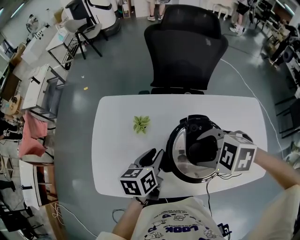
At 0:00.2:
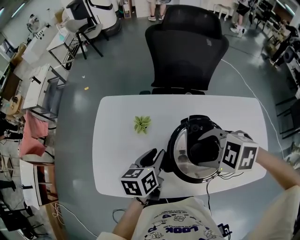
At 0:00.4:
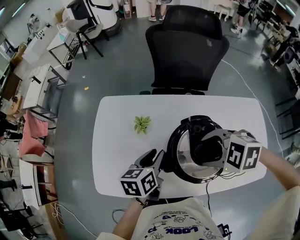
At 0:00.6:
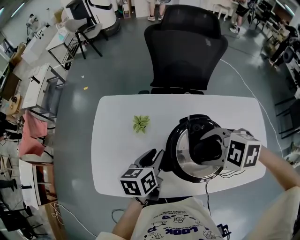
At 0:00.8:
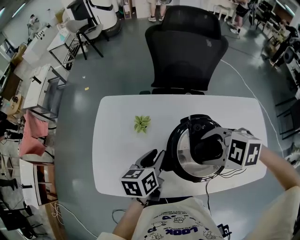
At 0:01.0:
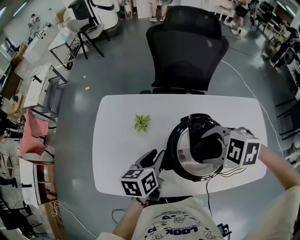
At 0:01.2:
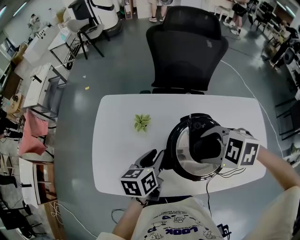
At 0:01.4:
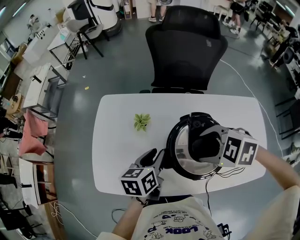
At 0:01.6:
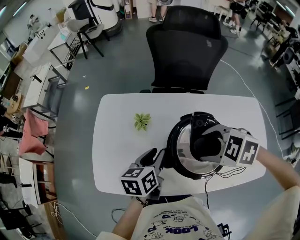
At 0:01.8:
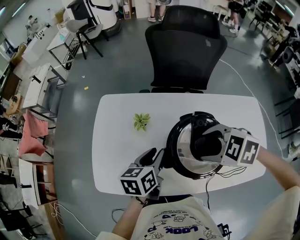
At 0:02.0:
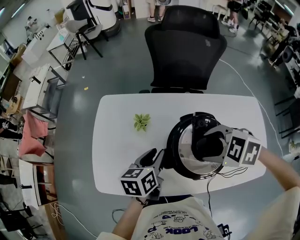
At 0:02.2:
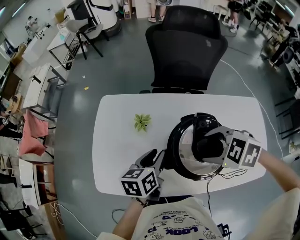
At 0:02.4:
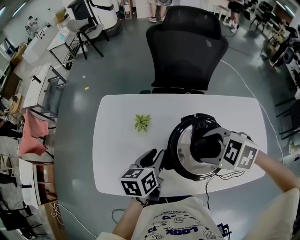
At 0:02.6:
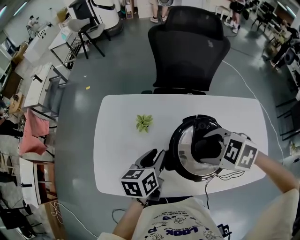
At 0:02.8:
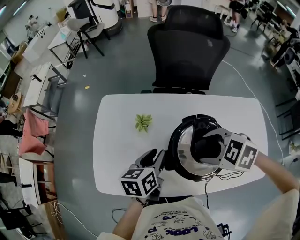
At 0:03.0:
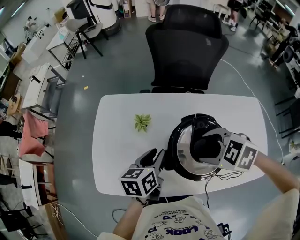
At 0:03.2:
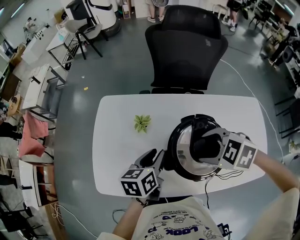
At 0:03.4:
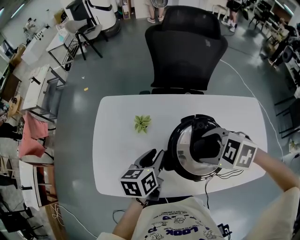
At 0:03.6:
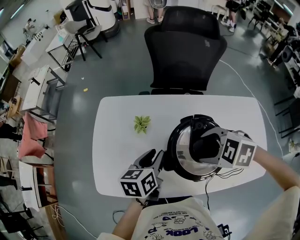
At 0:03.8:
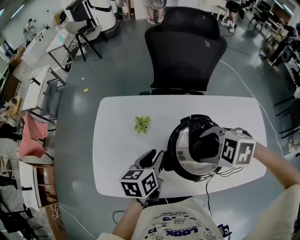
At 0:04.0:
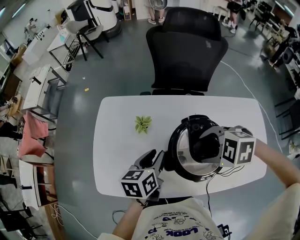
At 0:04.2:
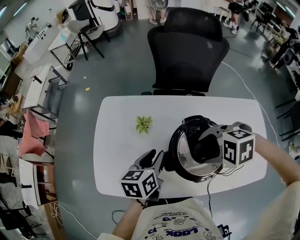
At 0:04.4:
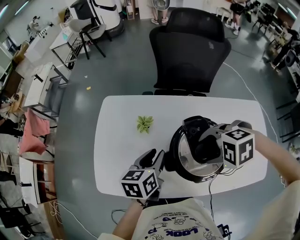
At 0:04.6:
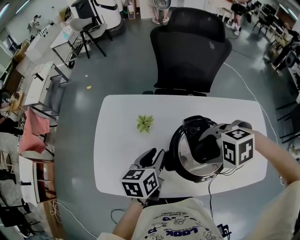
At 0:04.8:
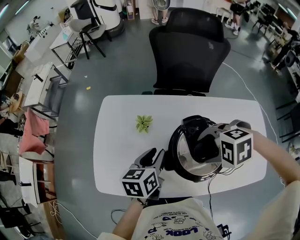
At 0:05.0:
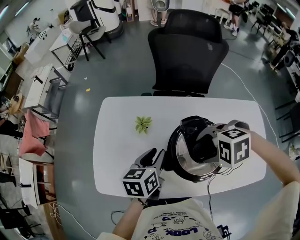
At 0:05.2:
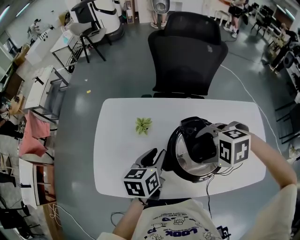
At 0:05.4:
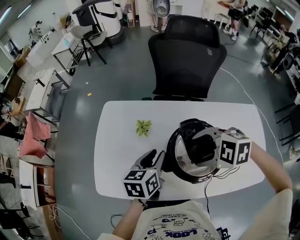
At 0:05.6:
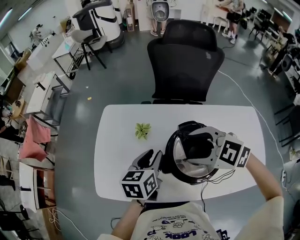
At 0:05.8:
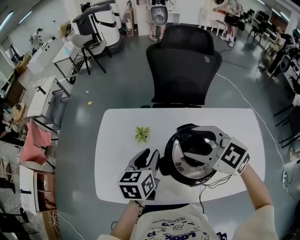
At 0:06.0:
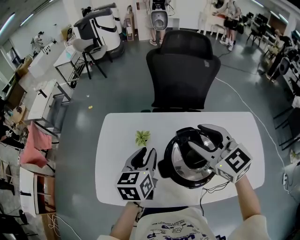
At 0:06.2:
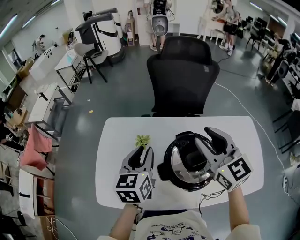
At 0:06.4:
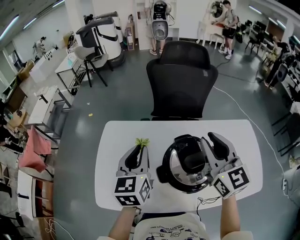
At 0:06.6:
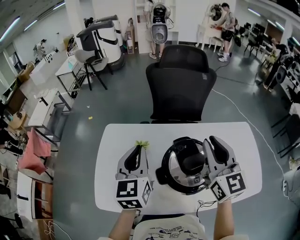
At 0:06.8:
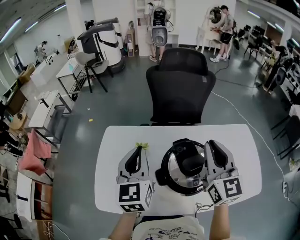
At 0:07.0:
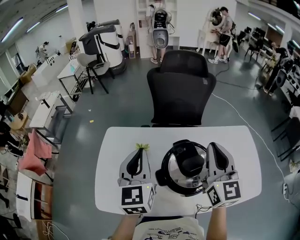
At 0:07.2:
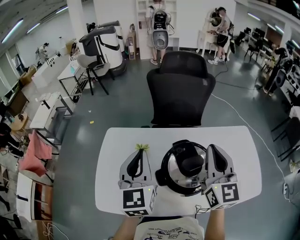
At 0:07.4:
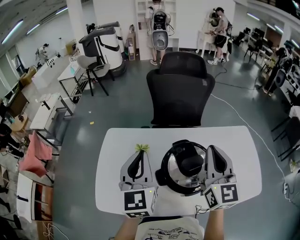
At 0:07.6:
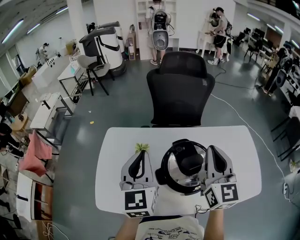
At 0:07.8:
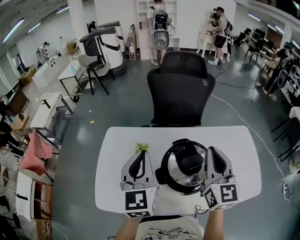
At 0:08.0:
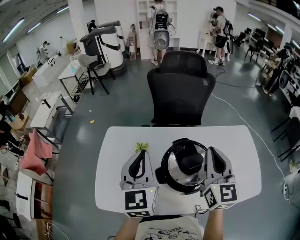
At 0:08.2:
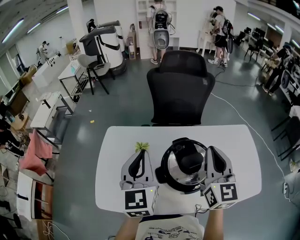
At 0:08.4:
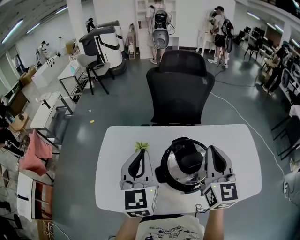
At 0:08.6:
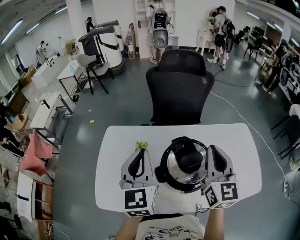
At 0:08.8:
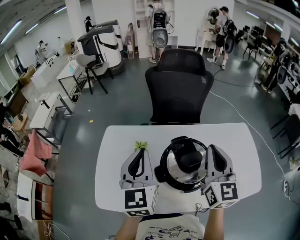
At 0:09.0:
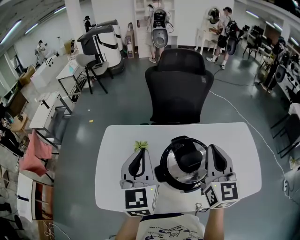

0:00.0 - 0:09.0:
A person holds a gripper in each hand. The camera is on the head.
0:00.0 - 0:01.6: The grippers move only a little.
0:01.6 - 0:03.0: Both grippers stay about where they are.
0:03.0 - 0:04.4: The right gripper swivels some 30 degrees.
0:04.4 - 0:06.0: The left gripper moves upward, some 10 cm, while the right gripper moves upward, approximately 15 cm, and angles its fingers upward, by about 50 degrees.
0:06.0 - 0:07.6: The right gripper goes roughly 10 cm to the right, backward and upward, turns by about 40 degrees, and closes its fingers. Meanwhile the left gripper goes roughly 15 cm upward, turns by about 30 degrees, and closes up.
0:07.6 - 0:09.0: Both grippers stay about where they are.

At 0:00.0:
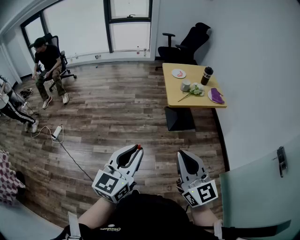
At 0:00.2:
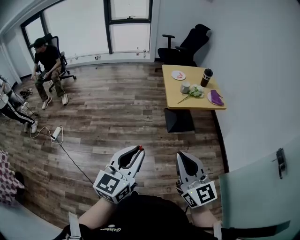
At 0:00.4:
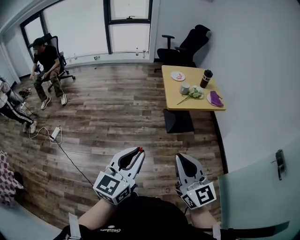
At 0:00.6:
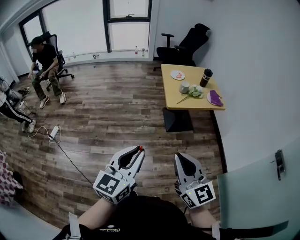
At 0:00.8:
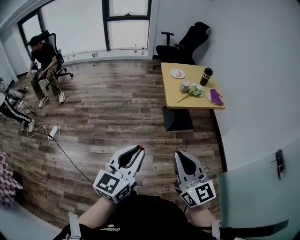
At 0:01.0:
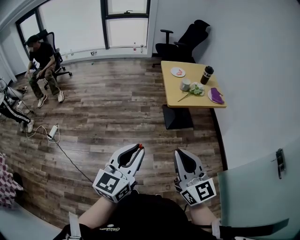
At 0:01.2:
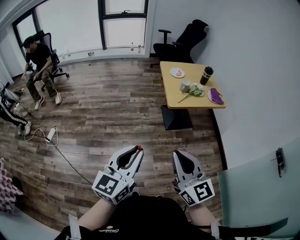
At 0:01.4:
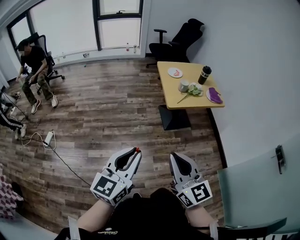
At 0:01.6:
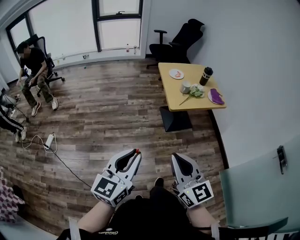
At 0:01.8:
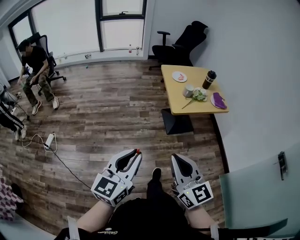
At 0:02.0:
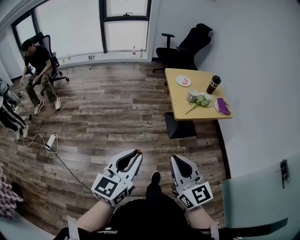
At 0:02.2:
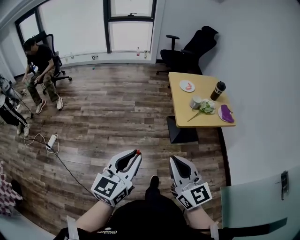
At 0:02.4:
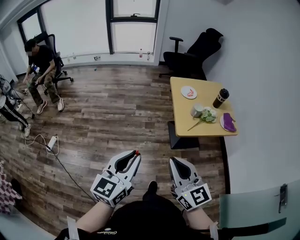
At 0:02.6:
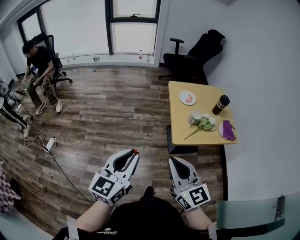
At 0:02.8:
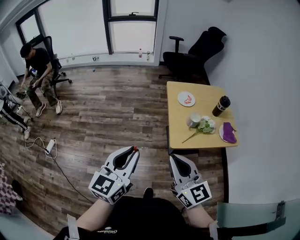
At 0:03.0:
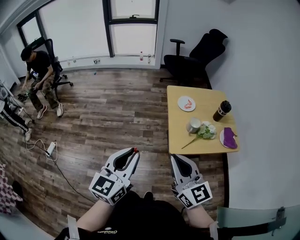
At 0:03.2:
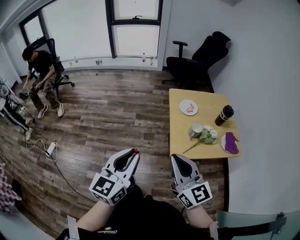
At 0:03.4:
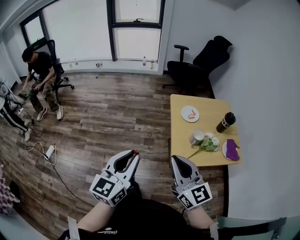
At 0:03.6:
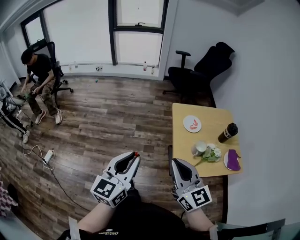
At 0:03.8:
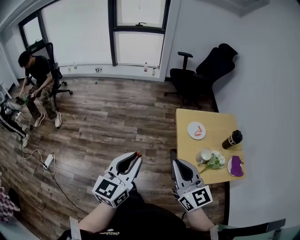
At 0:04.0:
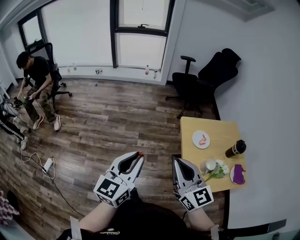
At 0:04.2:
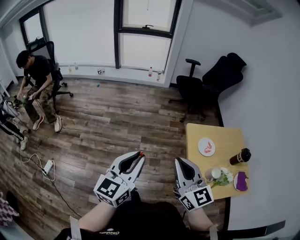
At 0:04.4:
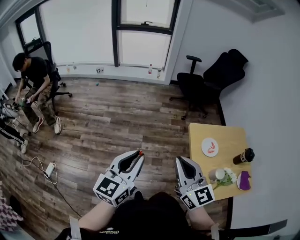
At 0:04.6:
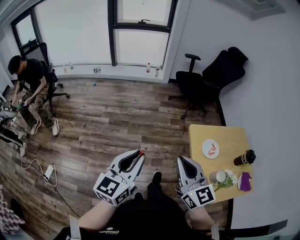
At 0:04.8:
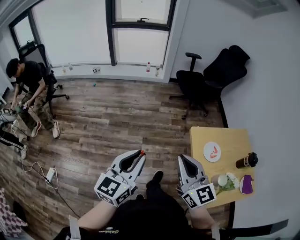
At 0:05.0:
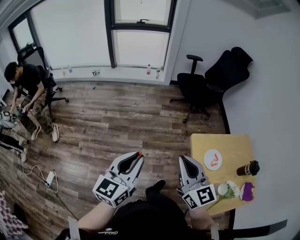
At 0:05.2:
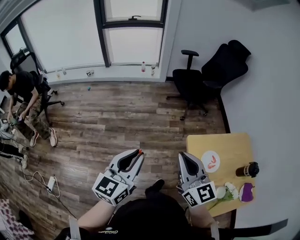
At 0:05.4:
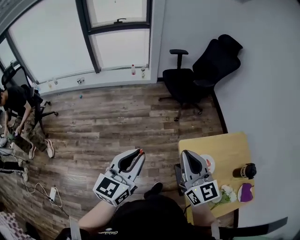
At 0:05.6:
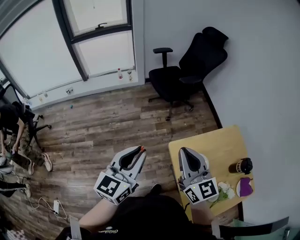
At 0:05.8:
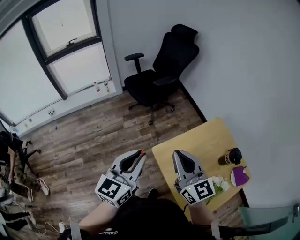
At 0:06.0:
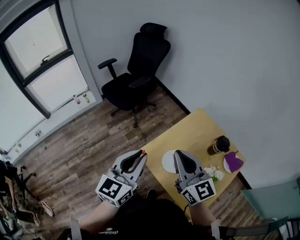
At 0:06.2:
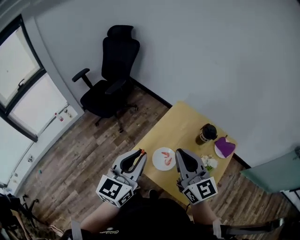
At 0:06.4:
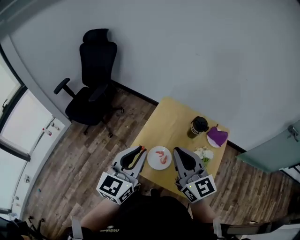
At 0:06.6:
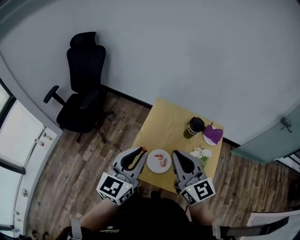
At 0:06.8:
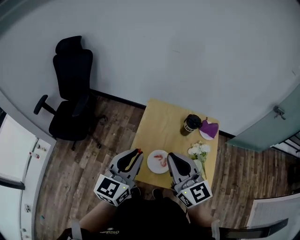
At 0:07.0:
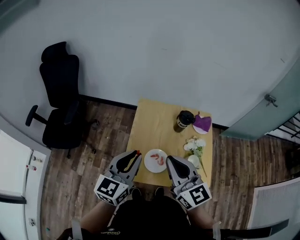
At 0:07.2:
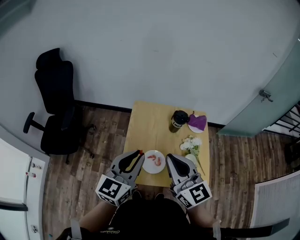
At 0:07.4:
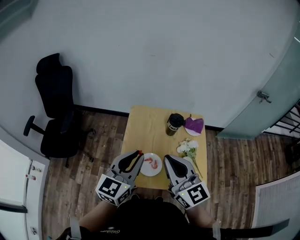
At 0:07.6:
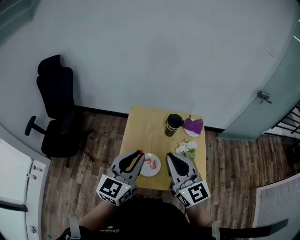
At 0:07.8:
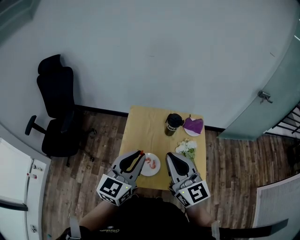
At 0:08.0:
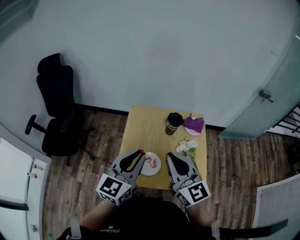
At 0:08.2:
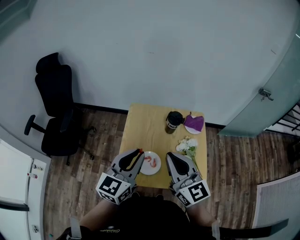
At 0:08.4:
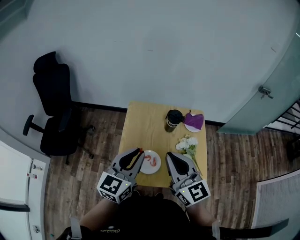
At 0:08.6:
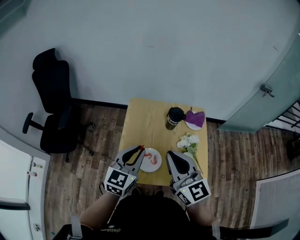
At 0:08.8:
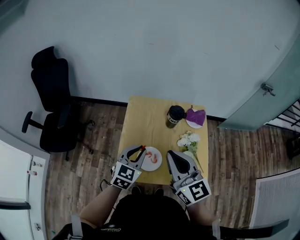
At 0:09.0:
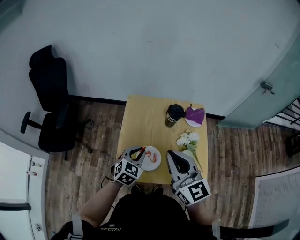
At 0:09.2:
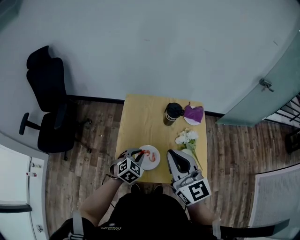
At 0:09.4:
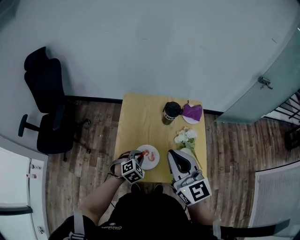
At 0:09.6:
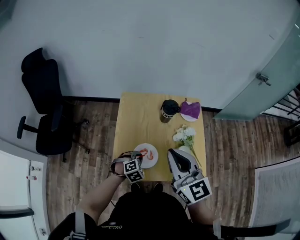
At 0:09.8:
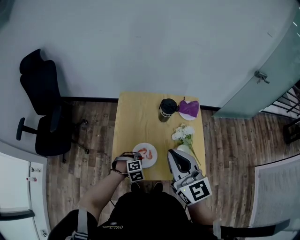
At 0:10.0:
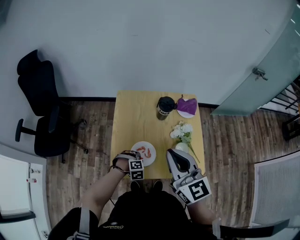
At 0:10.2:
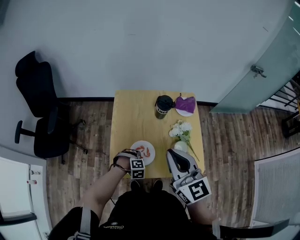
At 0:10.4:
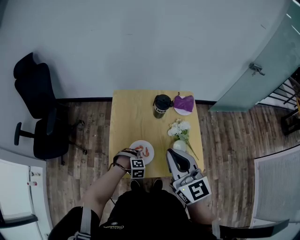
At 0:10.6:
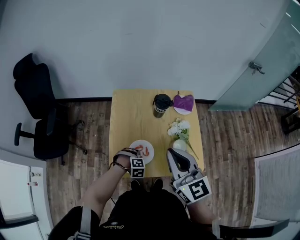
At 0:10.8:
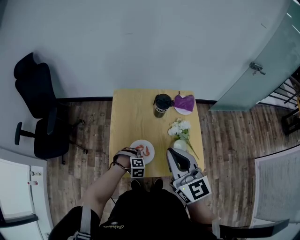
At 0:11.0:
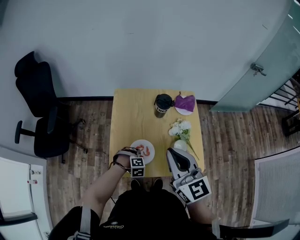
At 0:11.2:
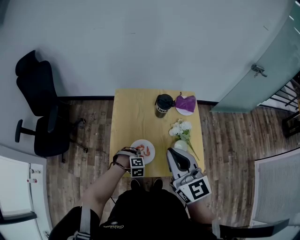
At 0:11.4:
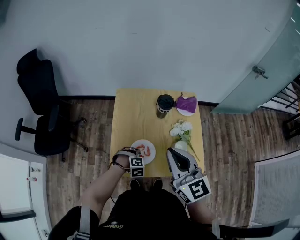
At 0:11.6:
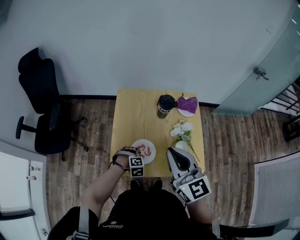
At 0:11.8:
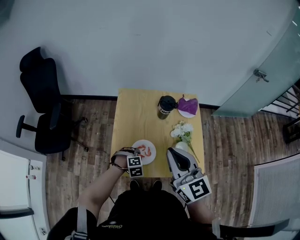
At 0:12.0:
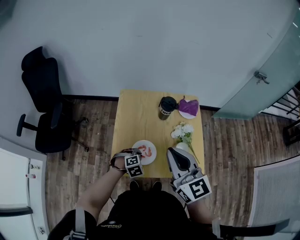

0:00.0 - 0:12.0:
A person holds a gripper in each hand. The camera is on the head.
0:00.0 - 0:01.6: Both grippers travel together to the left and forward, roughly 10 cm.
0:01.6 - 0:03.0: The two grippers go approximately 30 cm forward.
0:03.0 - 0:04.4: The two grippers go some 35 cm forward and to the left.
0:04.4 - 0:06.0: The left gripper moves some 40 cm, and turns by roughly 40 degrees. Meanwhile the right gripper moves roughly 35 cm, and swivels roughly 40 degrees.
0:06.0 - 0:07.6: The left gripper changes place by approximately 15 cm, and rotates about 50 degrees. Meanwhile the right gripper changes place by some 10 cm, and turns by roughly 40 degrees.
0:07.6 - 0:09.0: The left gripper heads downward, covering approximately 20 cm, and angles its fingers downward, by about 30 degrees.
0:09.0 - 0:10.4: The left gripper goes about 20 cm downward, and tilts its fingers about 40 degrees downward.
0:10.4 - 0:12.0: The left gripper is displaced upward by some 5 cm, and rotates some 20 degrees.

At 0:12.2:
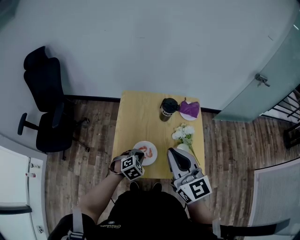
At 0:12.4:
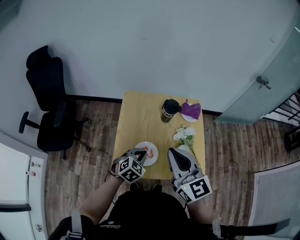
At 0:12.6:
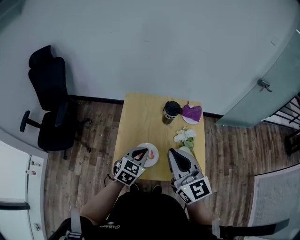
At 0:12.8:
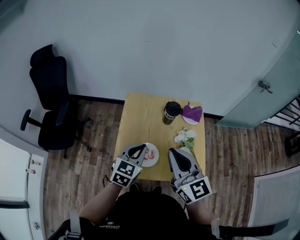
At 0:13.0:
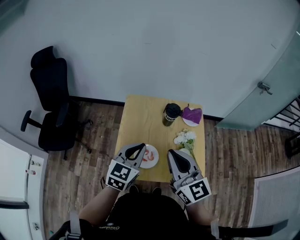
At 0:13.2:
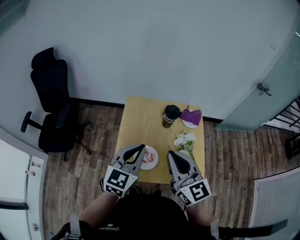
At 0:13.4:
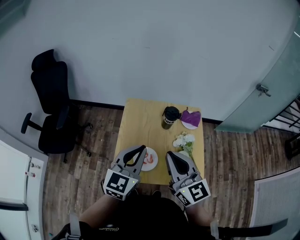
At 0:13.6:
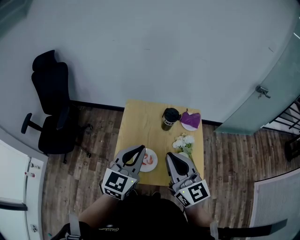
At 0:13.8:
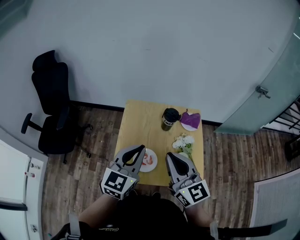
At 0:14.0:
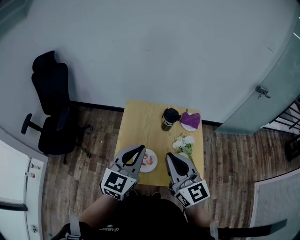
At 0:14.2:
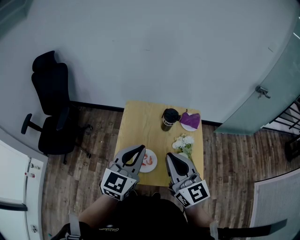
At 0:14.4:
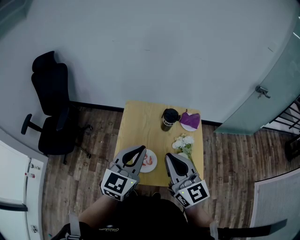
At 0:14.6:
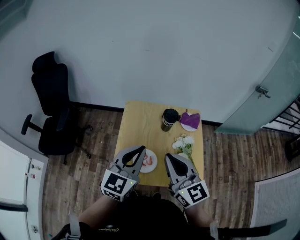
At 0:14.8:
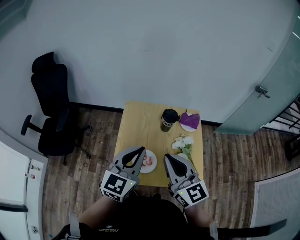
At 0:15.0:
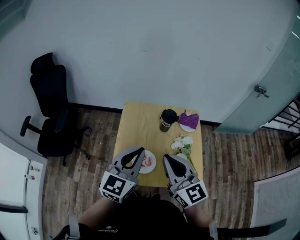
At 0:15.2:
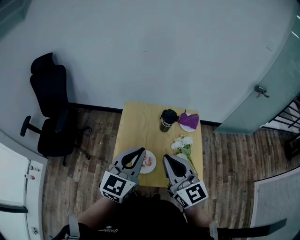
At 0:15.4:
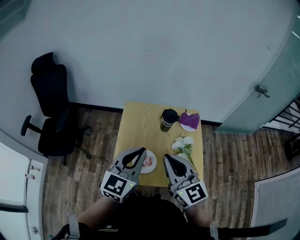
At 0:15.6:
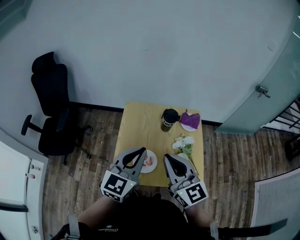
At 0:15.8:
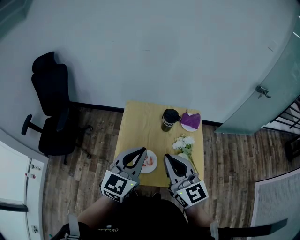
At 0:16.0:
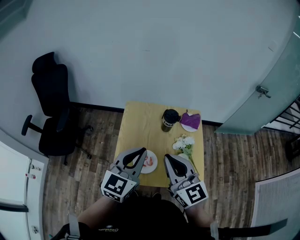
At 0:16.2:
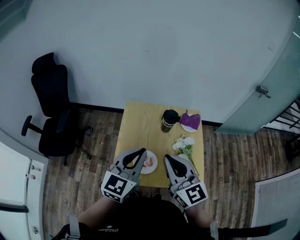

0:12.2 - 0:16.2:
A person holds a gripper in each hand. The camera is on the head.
0:12.2 - 0:13.6: The left gripper shifts approximately 30 cm upward, and angles its fingers upward, by approximately 50 degrees.
0:13.6 - 0:14.8: Neither gripper changes place.
0:14.8 - 0:16.2: The two grippers keep their place.
